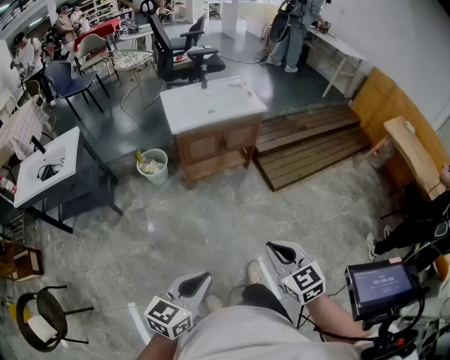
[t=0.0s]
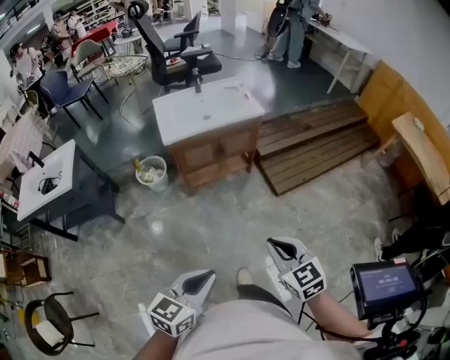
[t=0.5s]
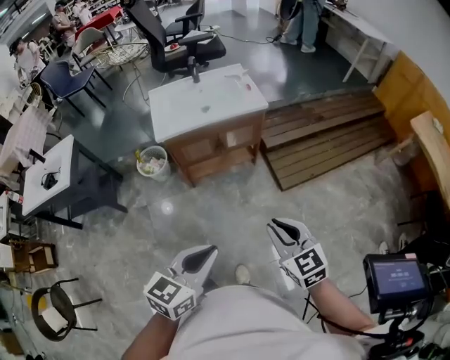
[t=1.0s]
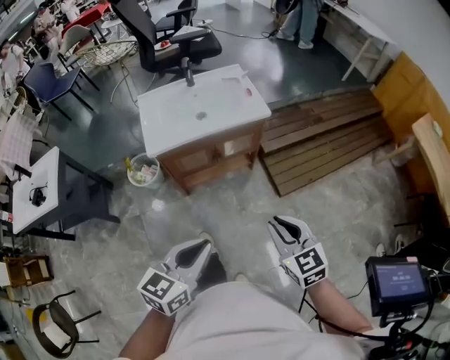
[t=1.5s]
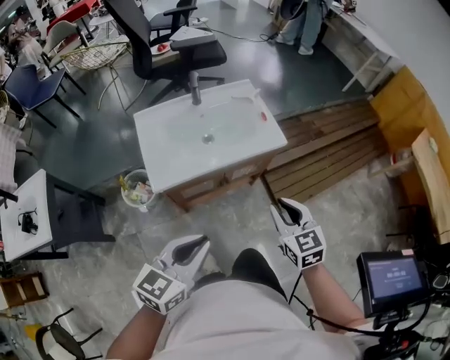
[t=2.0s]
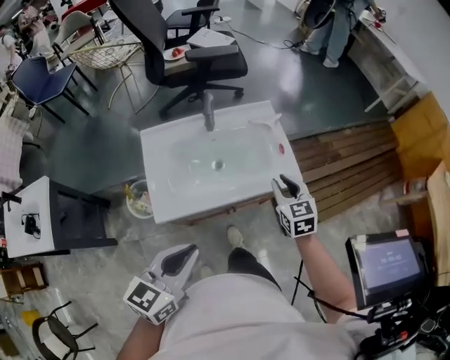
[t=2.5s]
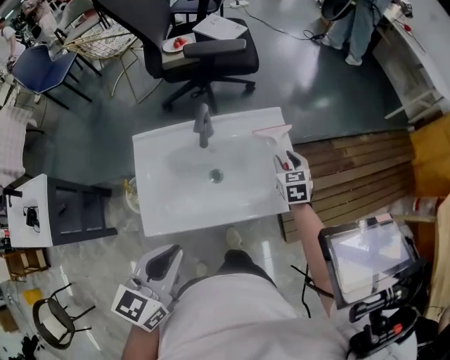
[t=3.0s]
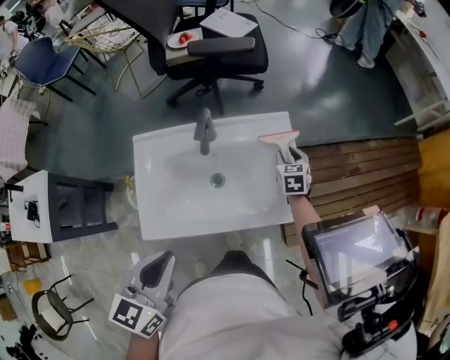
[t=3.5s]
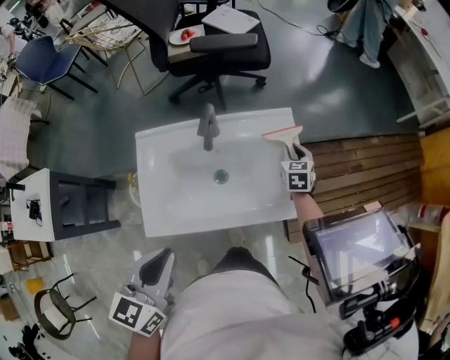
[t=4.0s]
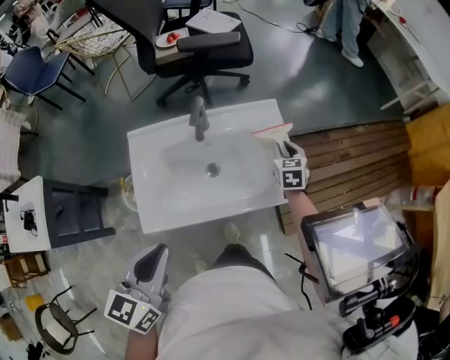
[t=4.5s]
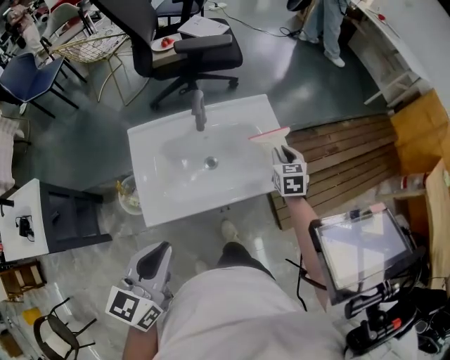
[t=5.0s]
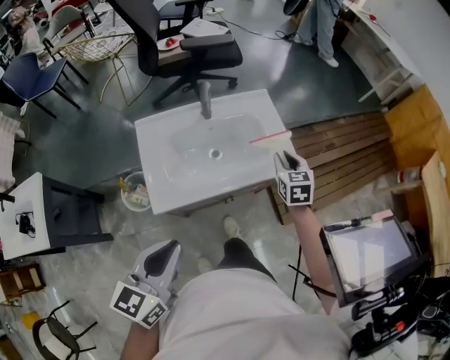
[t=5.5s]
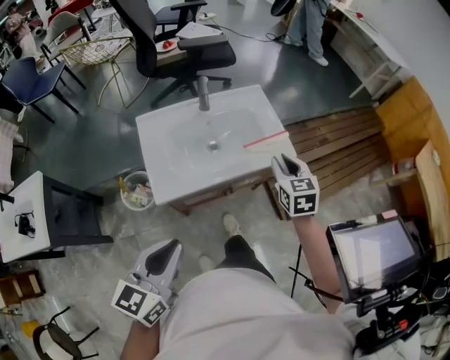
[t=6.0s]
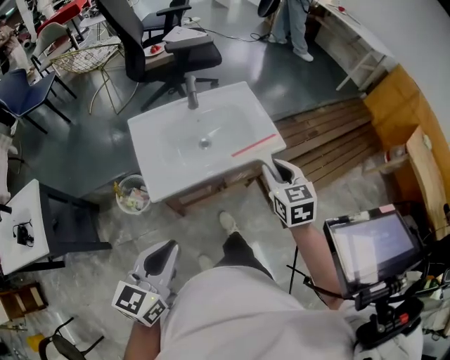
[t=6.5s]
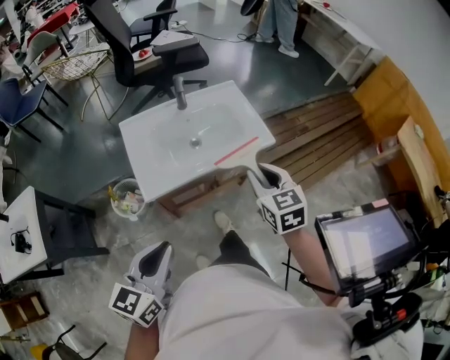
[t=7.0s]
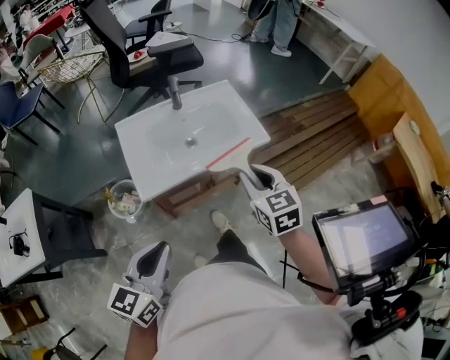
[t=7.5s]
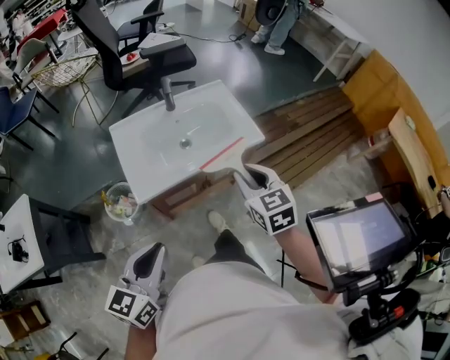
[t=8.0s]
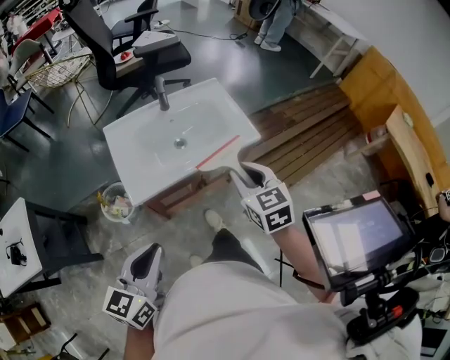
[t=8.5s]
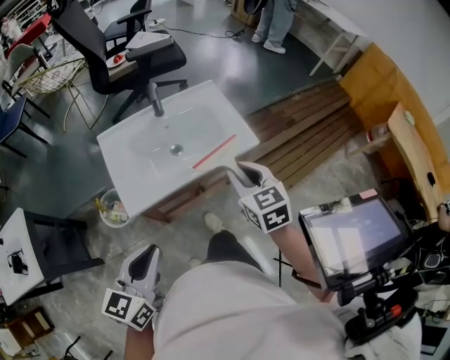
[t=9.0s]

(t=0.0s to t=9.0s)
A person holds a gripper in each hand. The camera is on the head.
t=0.0s - t=2.0s: The two grippers travel together, forward, approximately 60 cm.
t=2.0s - t=4.5s: The left gripper goes some 25 cm forward, and turns by about 30 degrees, while the right gripper travels forward by about 50 cm.
t=4.5s - t=7.0s: The left gripper goes about 25 cm backward. Meanwhile the right gripper moves backward and upward, approximately 40 cm.
t=7.0s - t=9.0s: The left gripper is displaced forward by some 5 cm.

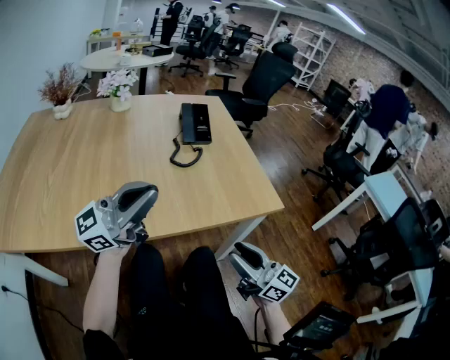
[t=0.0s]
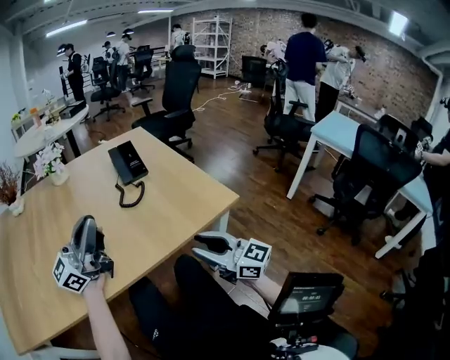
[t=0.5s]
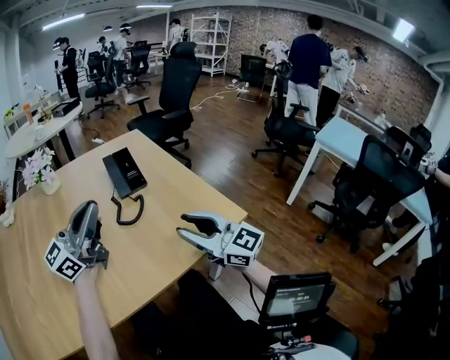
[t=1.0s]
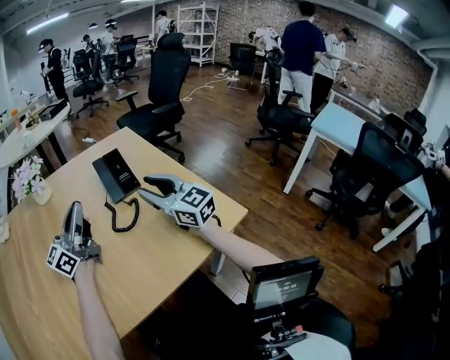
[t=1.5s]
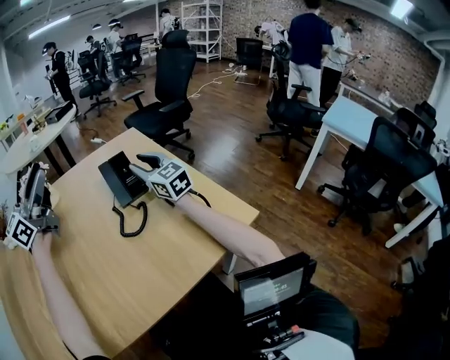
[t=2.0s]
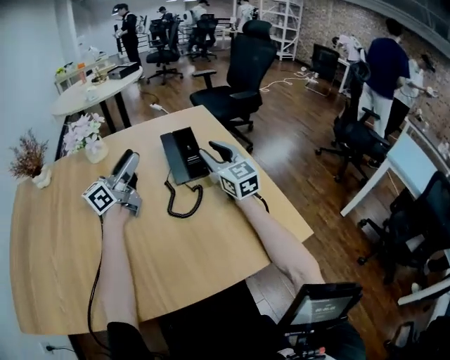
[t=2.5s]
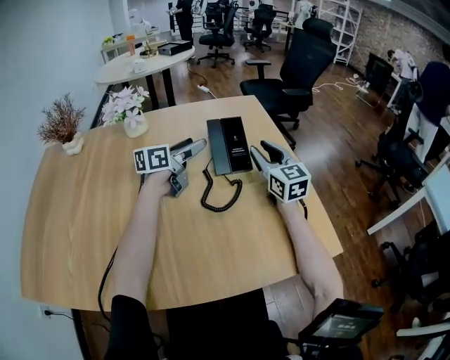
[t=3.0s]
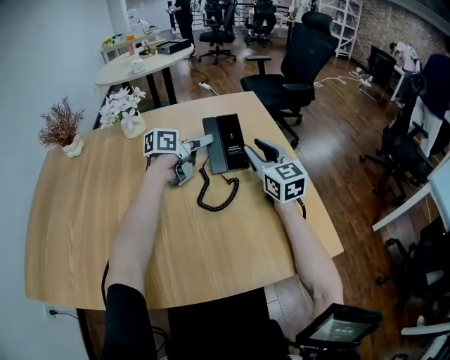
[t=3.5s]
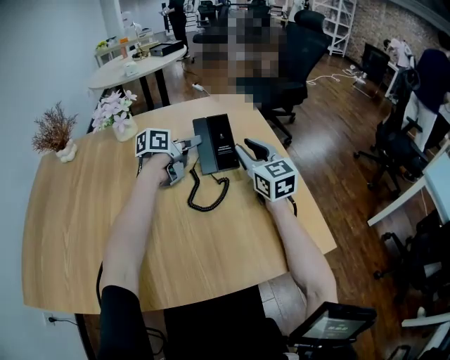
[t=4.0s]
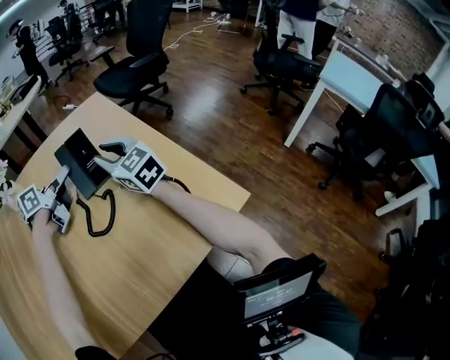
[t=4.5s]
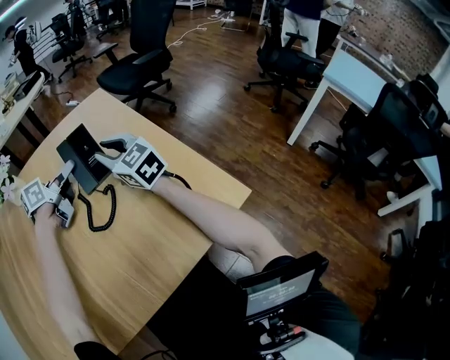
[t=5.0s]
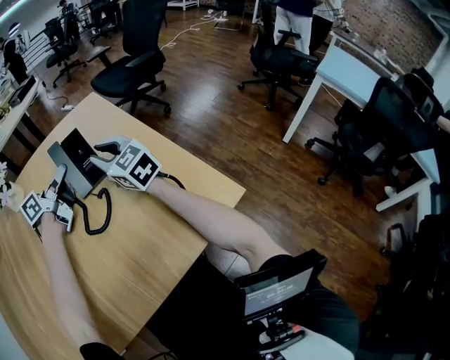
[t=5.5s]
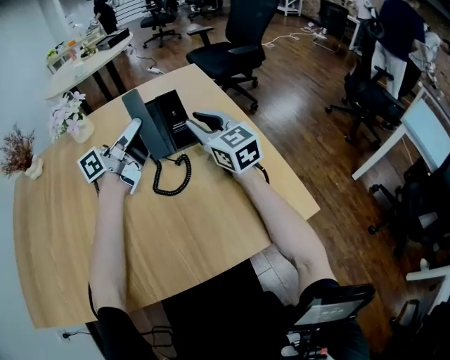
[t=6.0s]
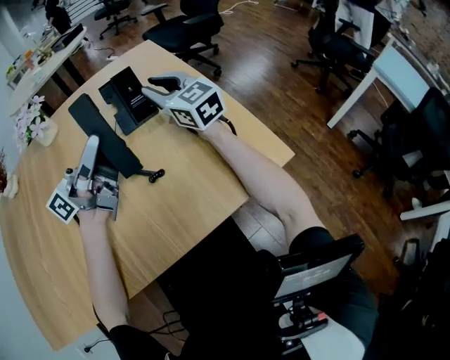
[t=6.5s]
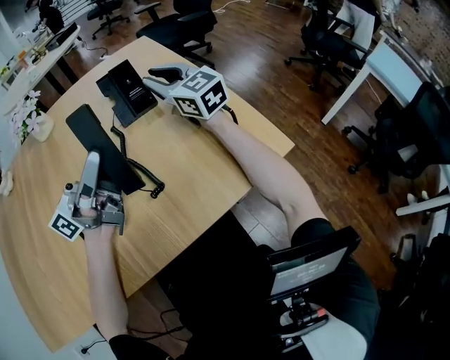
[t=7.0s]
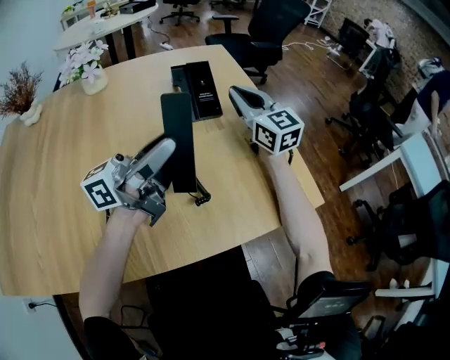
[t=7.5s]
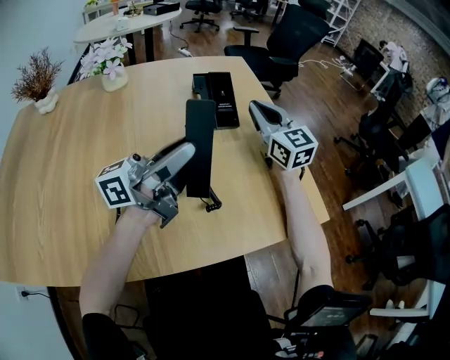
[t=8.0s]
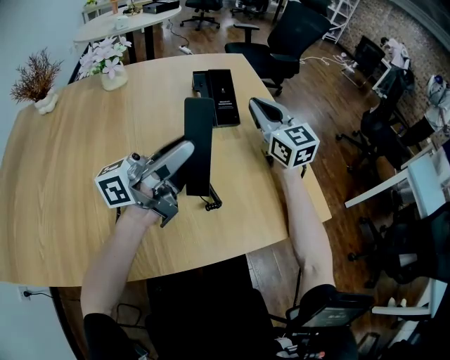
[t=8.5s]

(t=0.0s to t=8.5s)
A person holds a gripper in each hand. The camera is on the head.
t=0.0s - t=2.0s: The right gripper shifts some 50 cm forward, and rotates approximately 30 degrees; the left gripper moves forward and to the left, some 35 cm, swivels some 20 degrees, and opens up.
t=2.0s - t=4.0s: The right gripper moves roughly 5 cm, while the left gripper shifts approximately 30 cm downward, forward and to the right, points its fingers about 40 degrees further downward, and opens, then closes once more.
t=4.0s - t=6.5s: The left gripper is displaced backward and upward by about 25 cm, and points its fingers approximately 50 degrees further upward.
t=6.5s - t=8.5s: The grippers make only small movements.

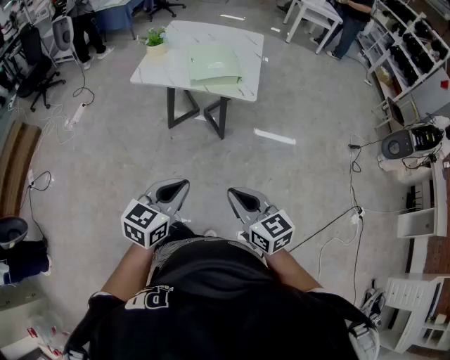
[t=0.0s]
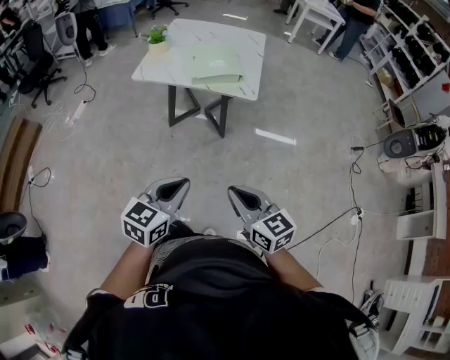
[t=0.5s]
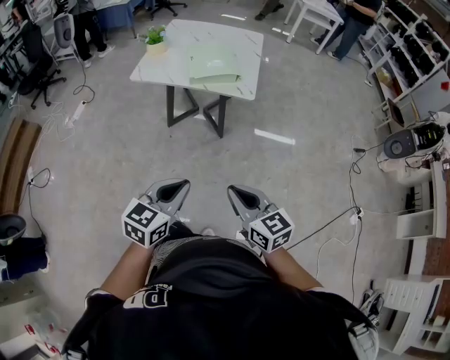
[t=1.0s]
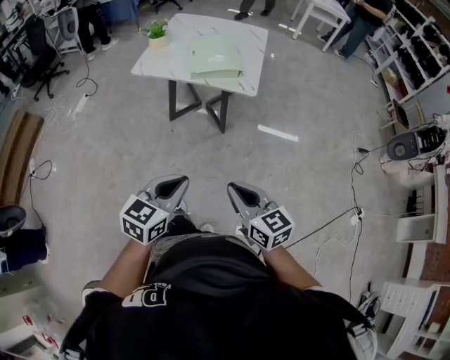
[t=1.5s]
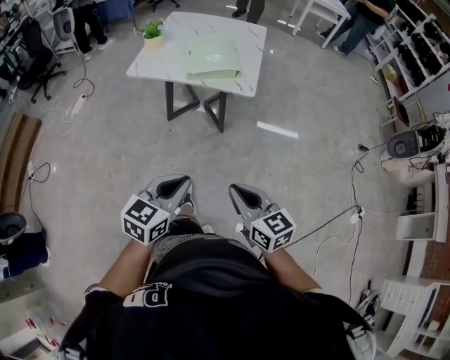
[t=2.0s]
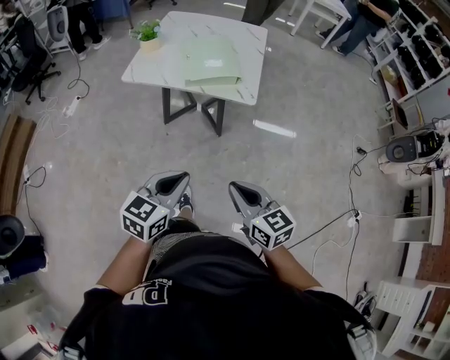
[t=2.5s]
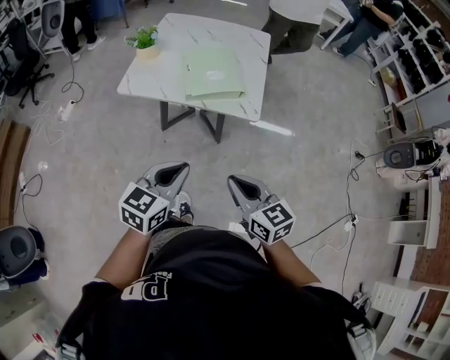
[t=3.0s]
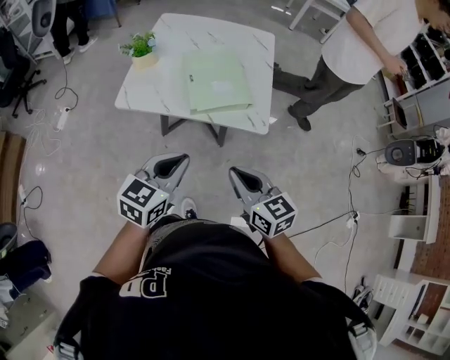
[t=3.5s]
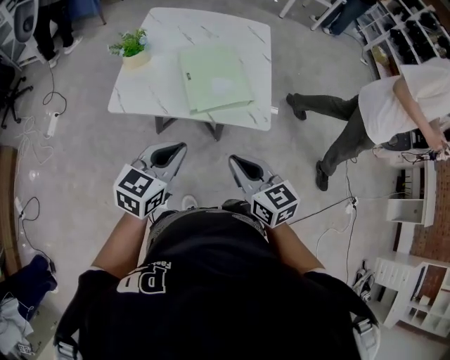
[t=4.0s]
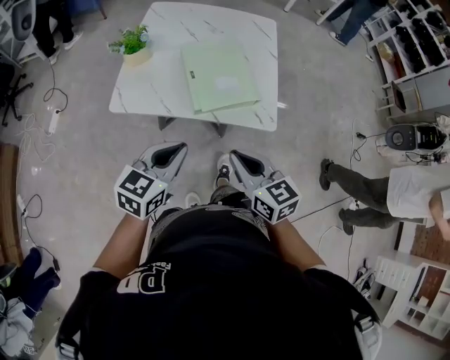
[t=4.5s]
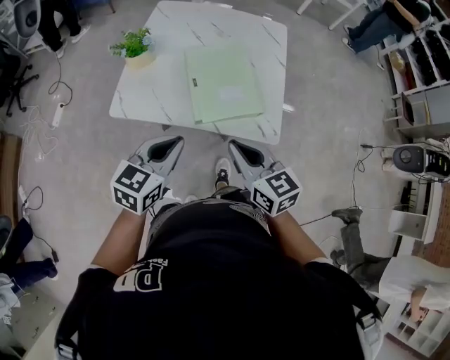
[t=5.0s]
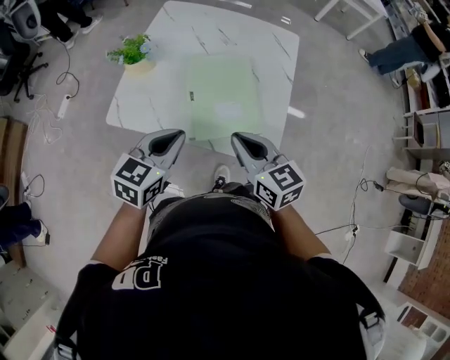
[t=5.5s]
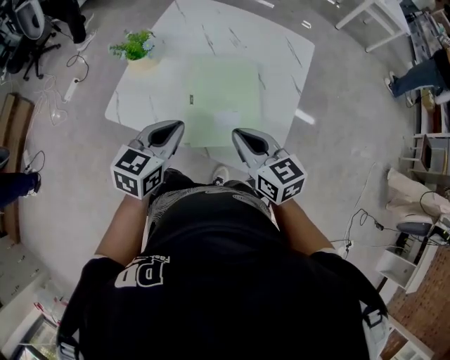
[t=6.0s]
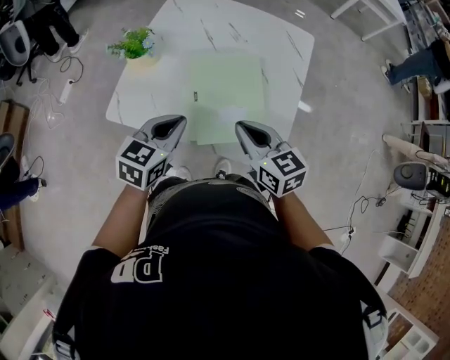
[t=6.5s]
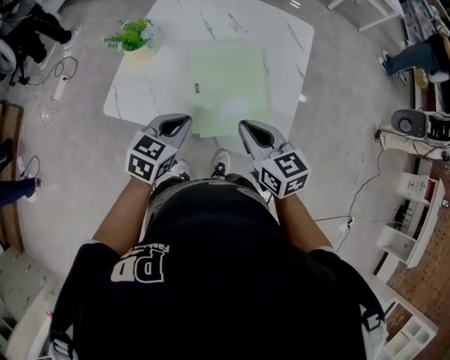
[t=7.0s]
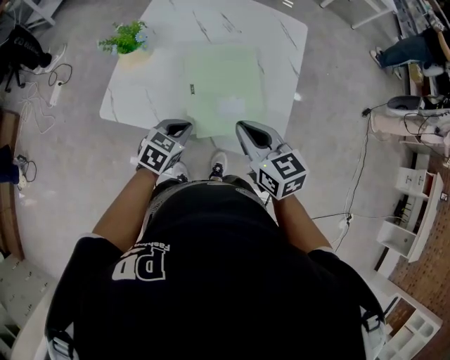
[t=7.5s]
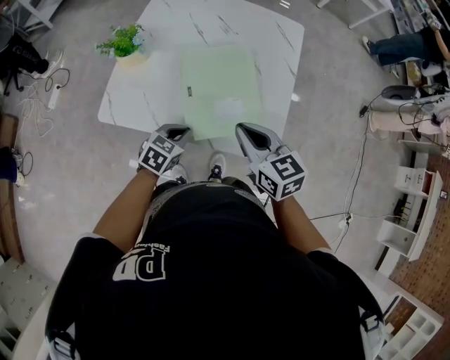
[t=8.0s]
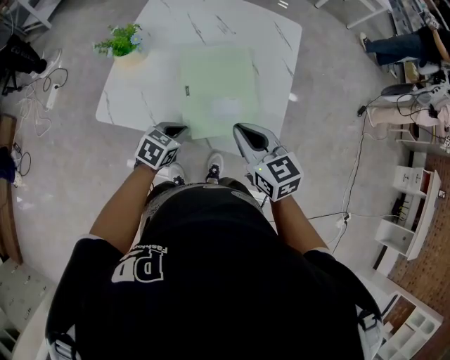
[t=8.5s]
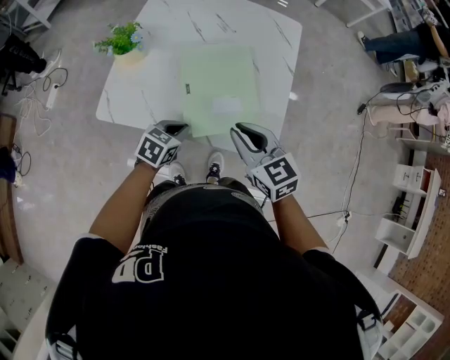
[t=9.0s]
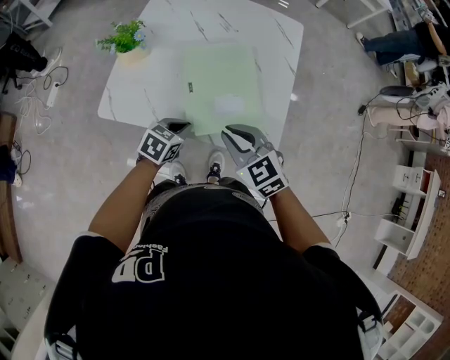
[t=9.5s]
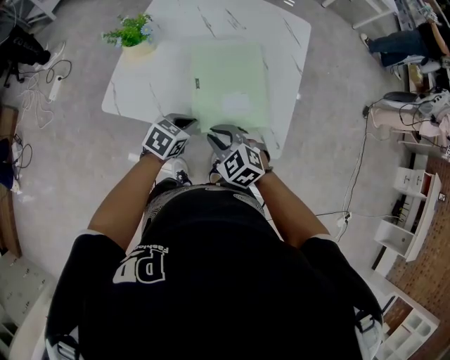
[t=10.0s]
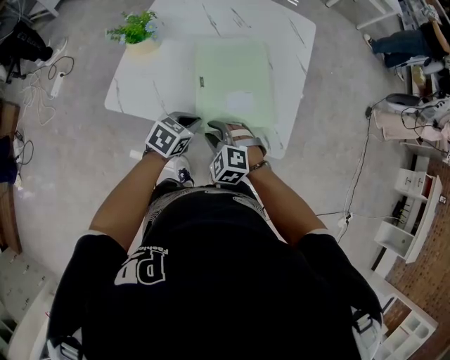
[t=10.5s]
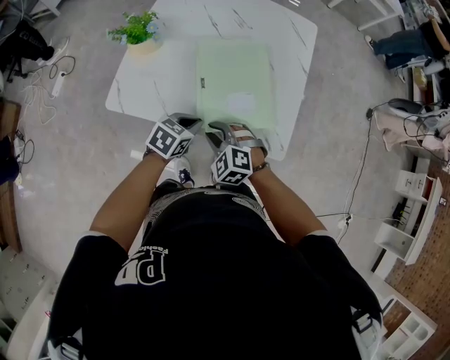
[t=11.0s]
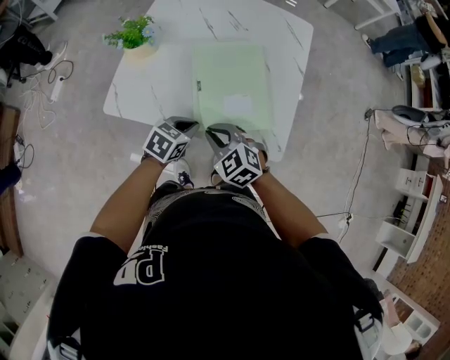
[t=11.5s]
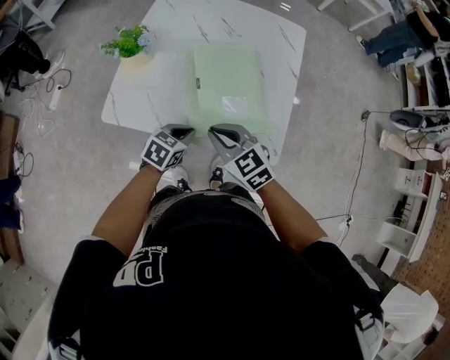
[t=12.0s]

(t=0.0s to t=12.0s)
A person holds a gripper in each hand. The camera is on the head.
t=0.0s - t=2.0s: The grippers stay close to where they were, moving slightly.
t=2.0s - t=4.0s: The grippers both shift forward by approximately 35 cm.
t=4.0s - t=6.0s: The grippers both shift forward by some 25 cm. The left gripper swivels approximately 20 degrees.
t=6.0s - t=8.0s: The left gripper is displaced downward by roughly 15 cm, and rotates approximately 30 degrees.
t=8.0s - t=10.0s: The right gripper moves downward, to the left and backward, approximately 15 cm, and swivels some 40 degrees.
t=10.0s - t=12.0s: The right gripper travels upward by some 5 cm, and swivels approximately 20 degrees.
